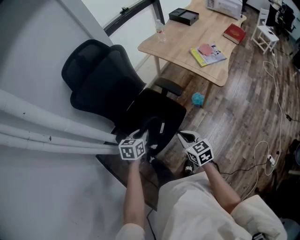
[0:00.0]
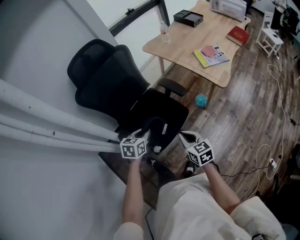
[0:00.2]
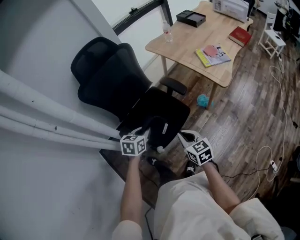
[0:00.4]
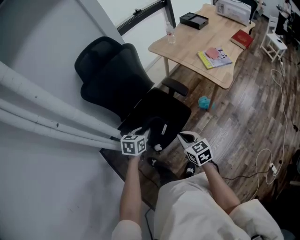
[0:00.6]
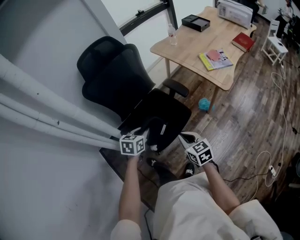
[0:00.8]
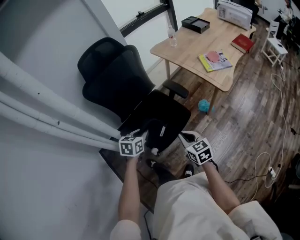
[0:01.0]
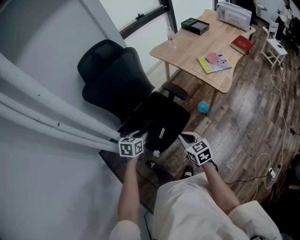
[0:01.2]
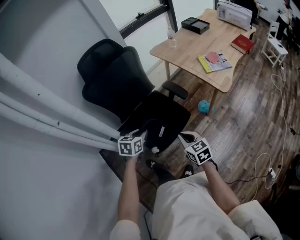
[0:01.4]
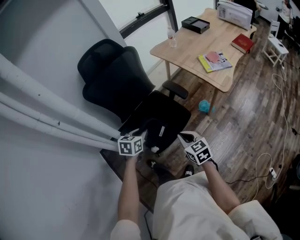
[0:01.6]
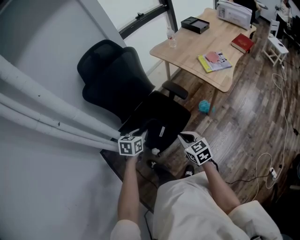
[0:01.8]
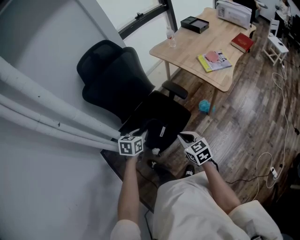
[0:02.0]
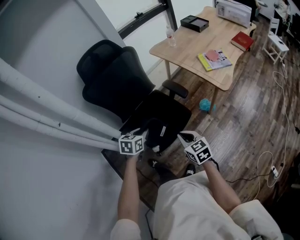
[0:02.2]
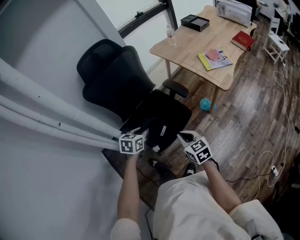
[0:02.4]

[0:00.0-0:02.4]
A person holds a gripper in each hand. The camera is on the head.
0.0 to 2.4 s: The grippers make only small movements.

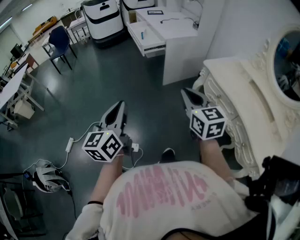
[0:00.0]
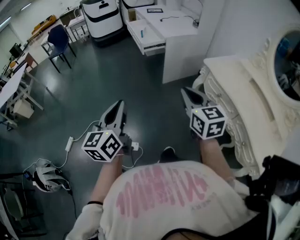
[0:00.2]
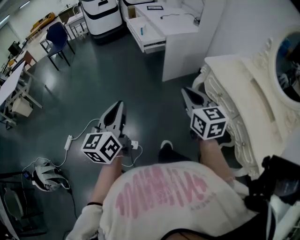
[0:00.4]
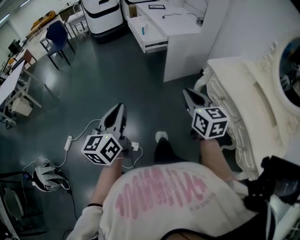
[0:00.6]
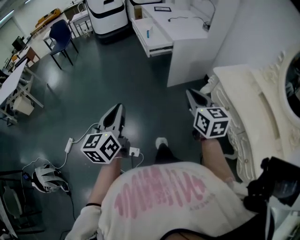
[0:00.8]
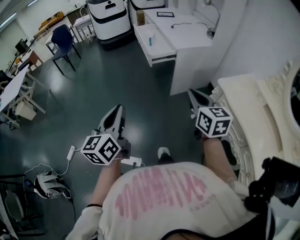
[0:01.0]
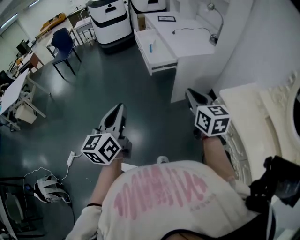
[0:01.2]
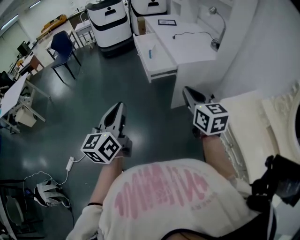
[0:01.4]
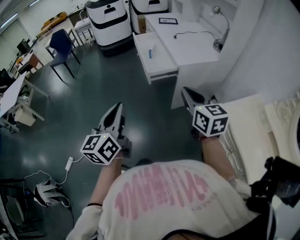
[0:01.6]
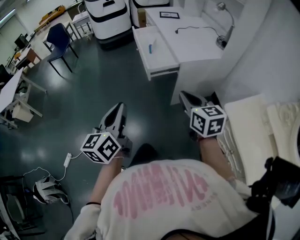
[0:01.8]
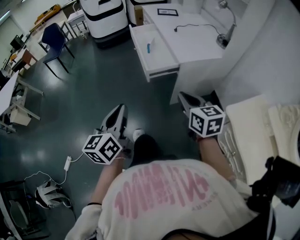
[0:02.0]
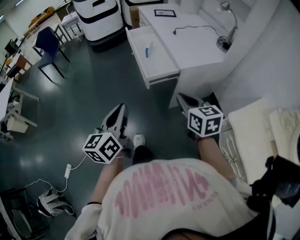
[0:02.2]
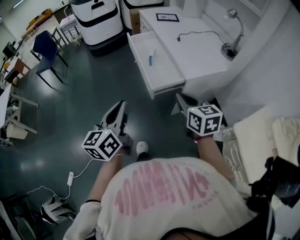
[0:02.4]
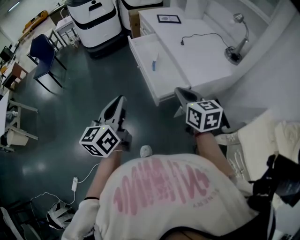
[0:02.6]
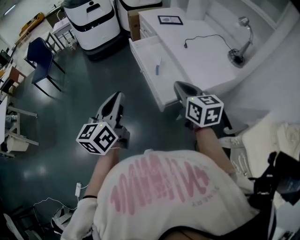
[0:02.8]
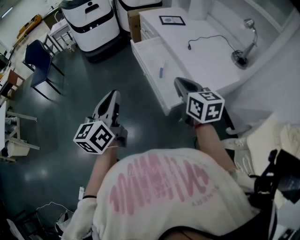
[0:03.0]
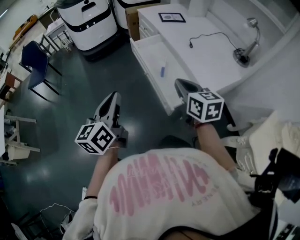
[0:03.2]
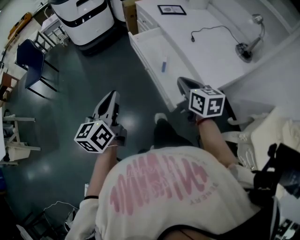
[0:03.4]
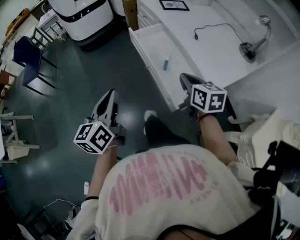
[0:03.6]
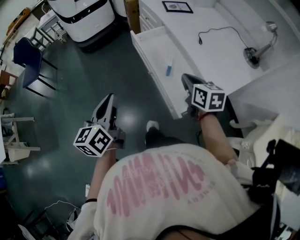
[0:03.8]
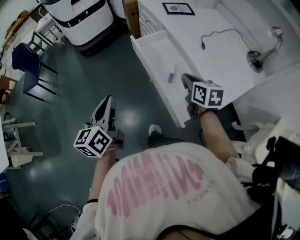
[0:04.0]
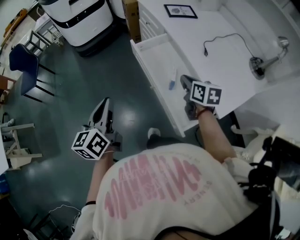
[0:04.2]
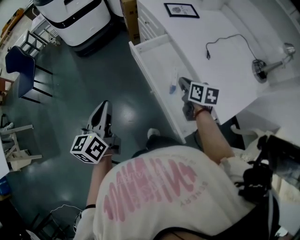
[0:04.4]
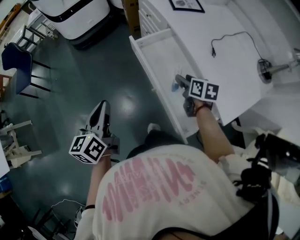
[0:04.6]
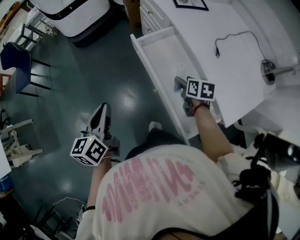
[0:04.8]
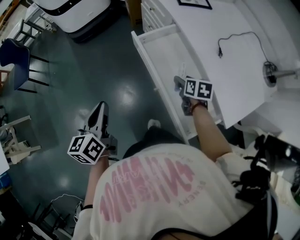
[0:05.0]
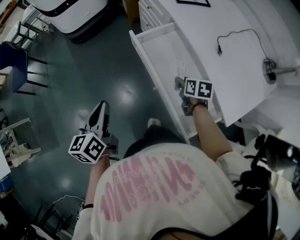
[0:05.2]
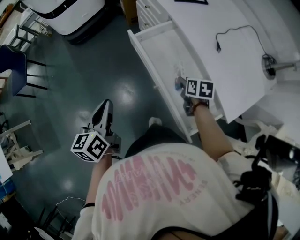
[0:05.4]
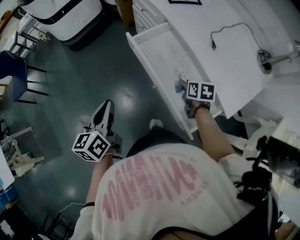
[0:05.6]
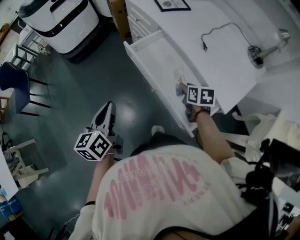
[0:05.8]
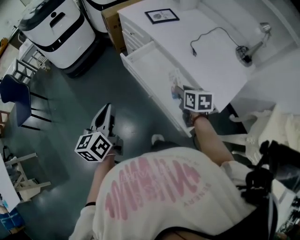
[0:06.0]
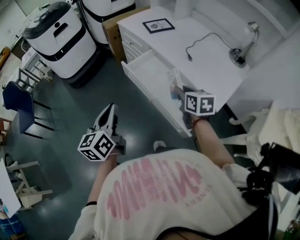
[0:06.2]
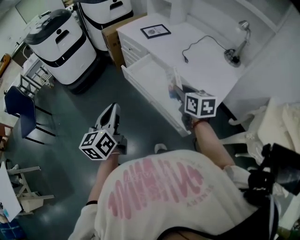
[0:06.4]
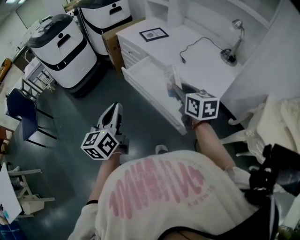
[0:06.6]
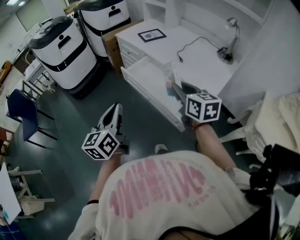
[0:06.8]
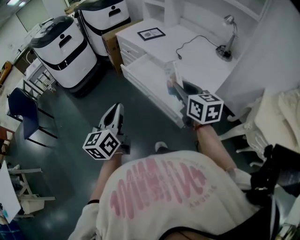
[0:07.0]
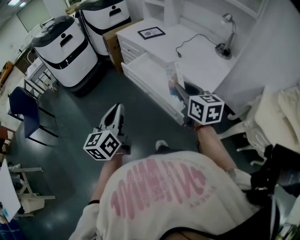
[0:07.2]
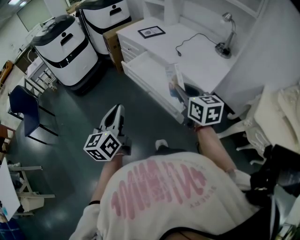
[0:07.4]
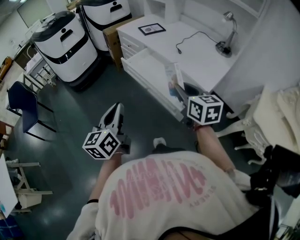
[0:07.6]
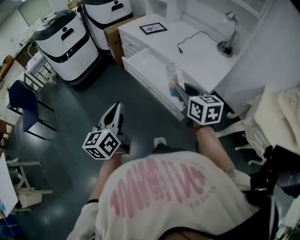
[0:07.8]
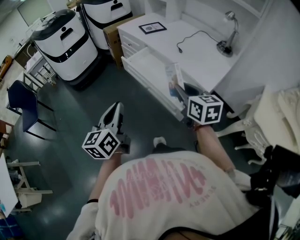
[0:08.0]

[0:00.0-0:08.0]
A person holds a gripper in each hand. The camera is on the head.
0.0 to 1.6 s: Both grippers travel together forward, roughly 35 cm.
1.6 to 3.2 s: The left gripper goes some 40 cm forward. The right gripper moves forward and to the left, about 40 cm.
3.2 to 4.8 s: Both grippers move forward and downward, some 30 cm. The right gripper turns by roughly 30 degrees, and opens.
4.8 to 6.4 s: The right gripper shifts roughly 25 cm upward and backward, rotates some 30 degrees, and closes, while the left gripper moves upward, roughly 10 cm, and swivels roughly 20 degrees.
6.4 to 8.0 s: The two grippers go roughly 10 cm backward.

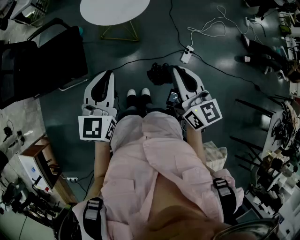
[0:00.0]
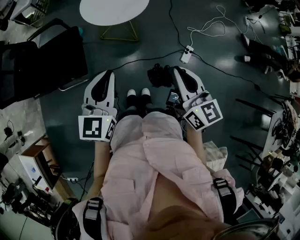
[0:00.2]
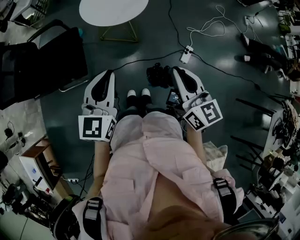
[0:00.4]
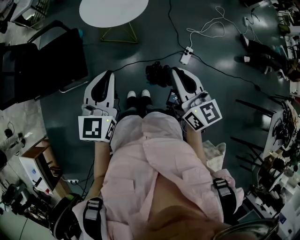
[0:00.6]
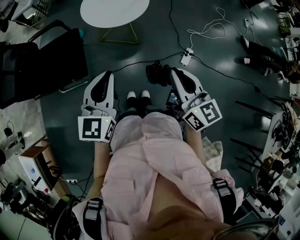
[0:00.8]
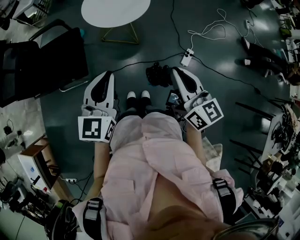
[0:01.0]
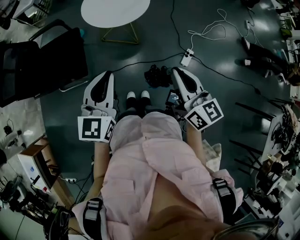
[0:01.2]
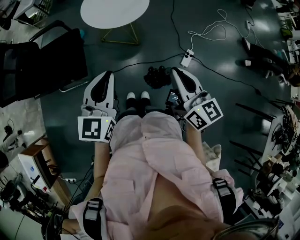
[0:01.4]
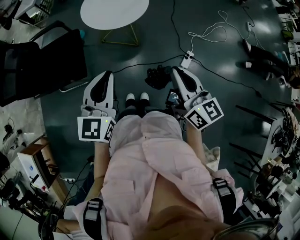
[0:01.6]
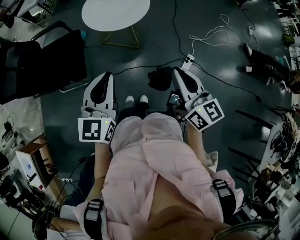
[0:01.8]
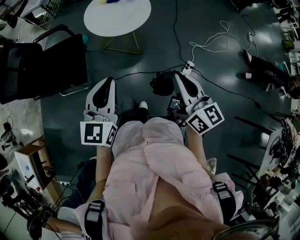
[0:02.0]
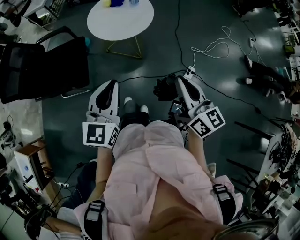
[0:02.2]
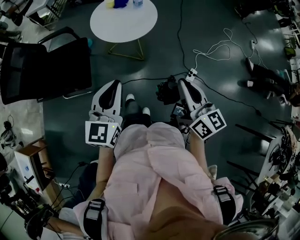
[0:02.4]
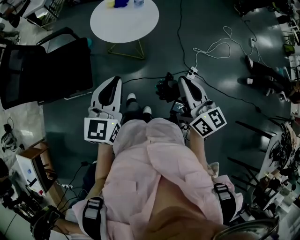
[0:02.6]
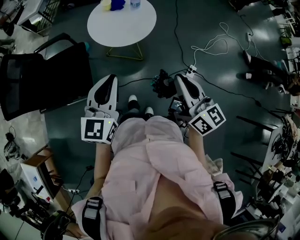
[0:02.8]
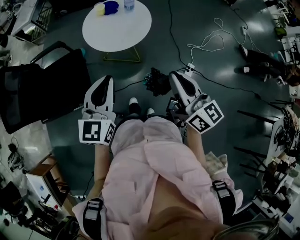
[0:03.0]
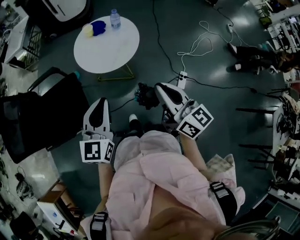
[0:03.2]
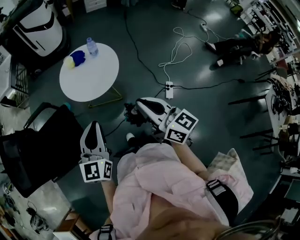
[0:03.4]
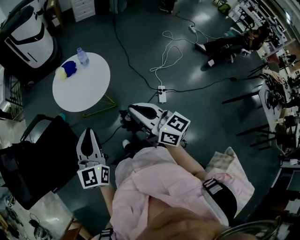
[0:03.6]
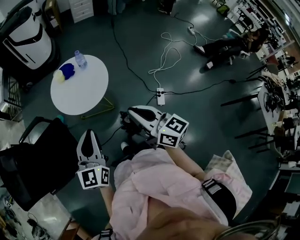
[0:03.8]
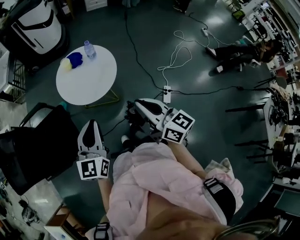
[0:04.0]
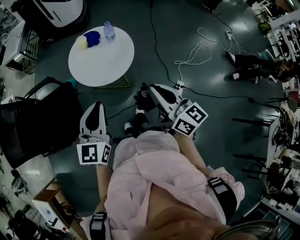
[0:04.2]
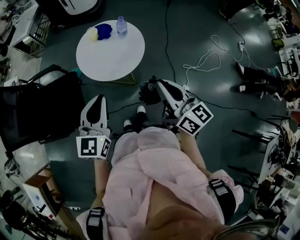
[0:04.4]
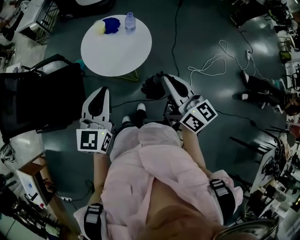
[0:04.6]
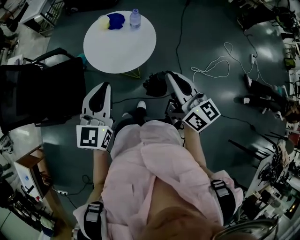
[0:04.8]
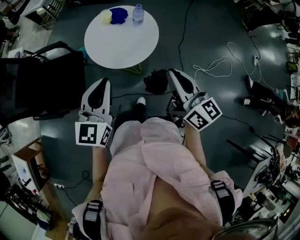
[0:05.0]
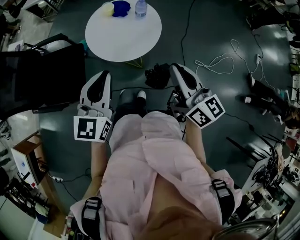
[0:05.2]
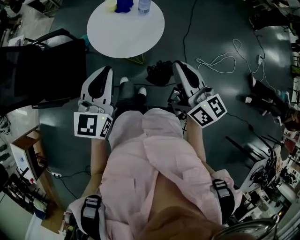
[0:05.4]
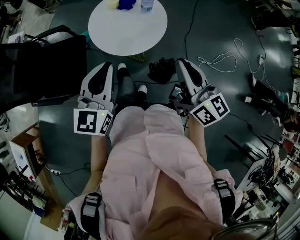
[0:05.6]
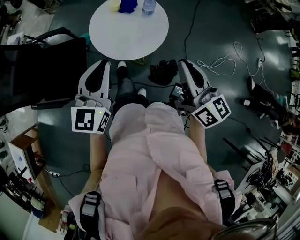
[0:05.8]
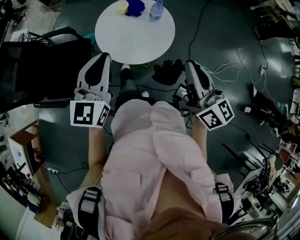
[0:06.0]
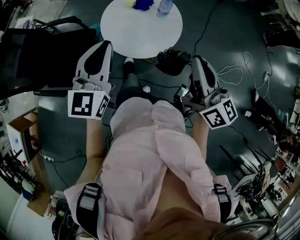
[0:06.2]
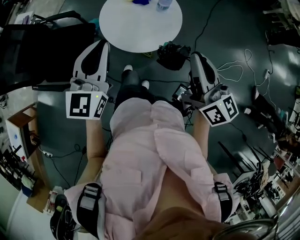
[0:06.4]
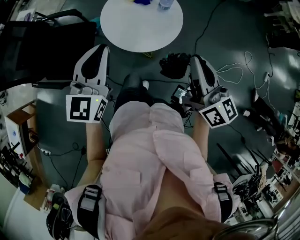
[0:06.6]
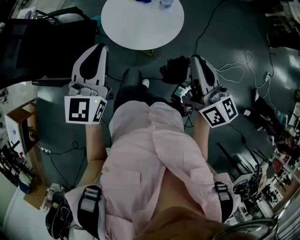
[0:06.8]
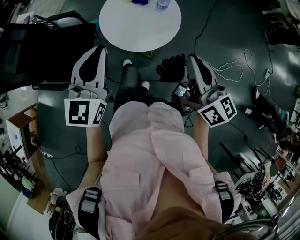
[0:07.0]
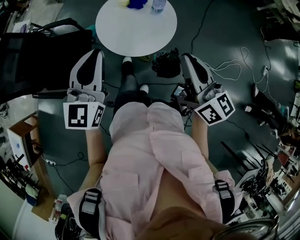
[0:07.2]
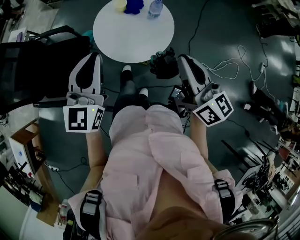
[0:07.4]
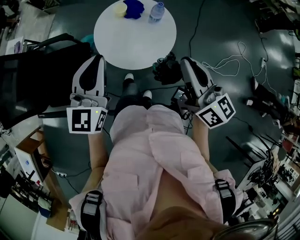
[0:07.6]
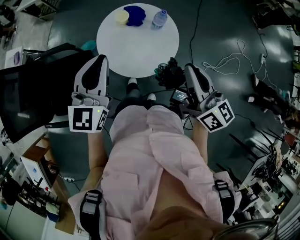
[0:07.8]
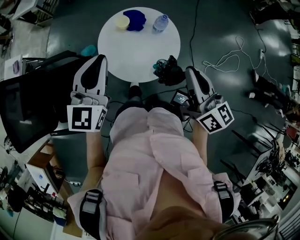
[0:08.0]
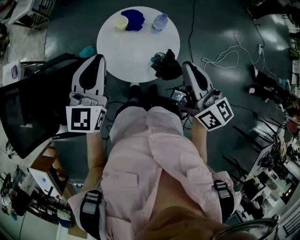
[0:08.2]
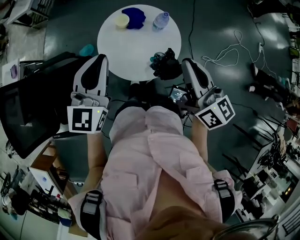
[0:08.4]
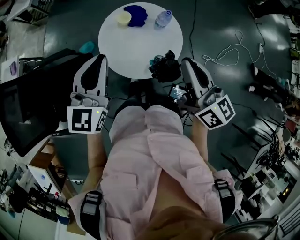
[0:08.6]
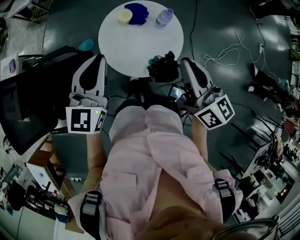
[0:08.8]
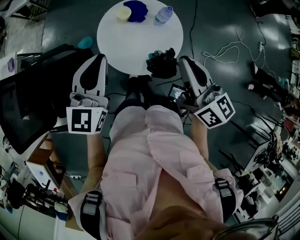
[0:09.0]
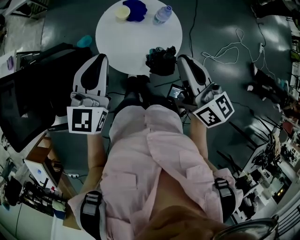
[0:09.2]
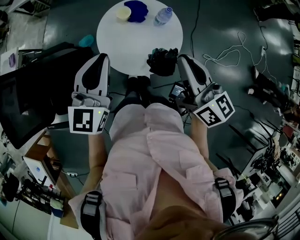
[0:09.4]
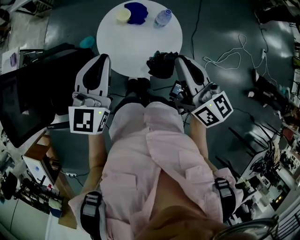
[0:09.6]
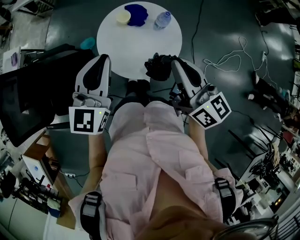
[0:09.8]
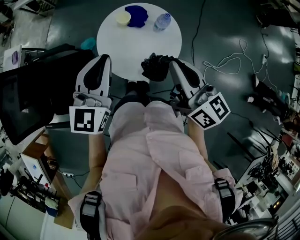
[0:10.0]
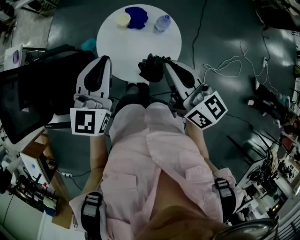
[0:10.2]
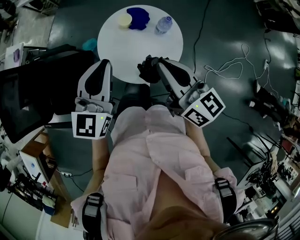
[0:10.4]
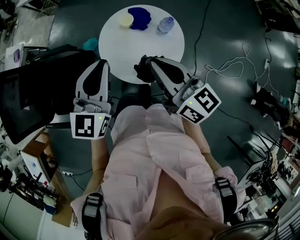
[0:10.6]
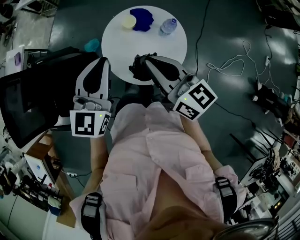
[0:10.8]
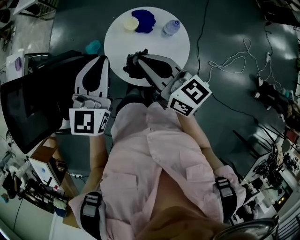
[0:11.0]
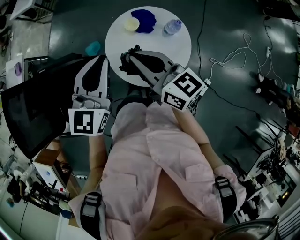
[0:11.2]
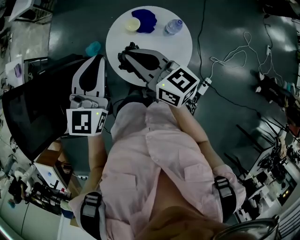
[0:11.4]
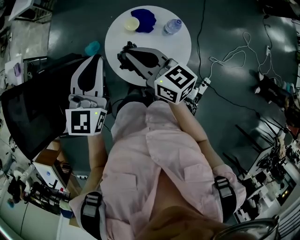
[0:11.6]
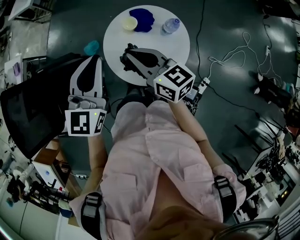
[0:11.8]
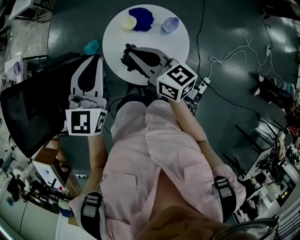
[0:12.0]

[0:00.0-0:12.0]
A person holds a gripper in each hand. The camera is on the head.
0.0 to 1.6 s: The grippers stay close to where they were, moving slightly.
1.6 to 3.0 s: Both grippers travel together forward and to the left, about 10 cm.
3.0 to 4.4 s: The two grippers go some 10 cm forward.
4.4 to 6.0 s: Both grippers travel together forward, approximately 10 cm.
6.0 to 7.6 s: Both grippers travel together forward, about 5 cm.
7.6 to 9.0 s: The left gripper shifts approximately 10 cm forward, while the right gripper is displaced to the left and forward by about 10 cm.
9.0 to 10.4 s: The grippers stay close to where they were, moving slightly.
10.4 to 12.0 s: The right gripper is displaced to the left, forward and downward by about 15 cm; the left gripper travels forward by approximately 10 cm.

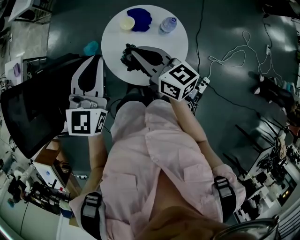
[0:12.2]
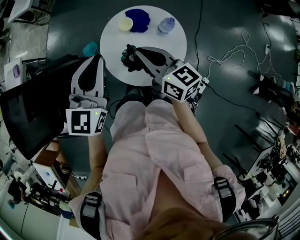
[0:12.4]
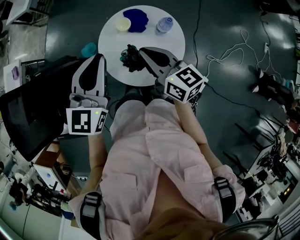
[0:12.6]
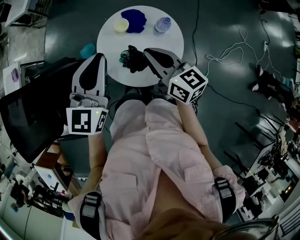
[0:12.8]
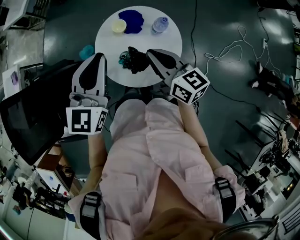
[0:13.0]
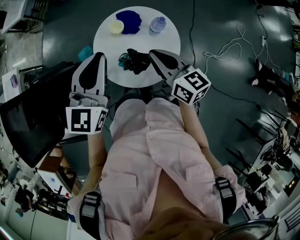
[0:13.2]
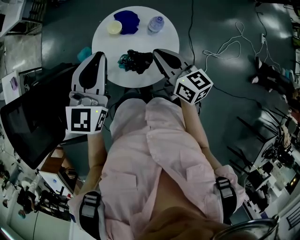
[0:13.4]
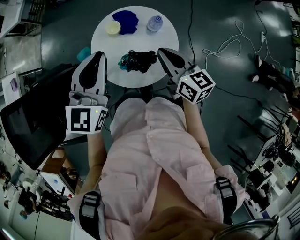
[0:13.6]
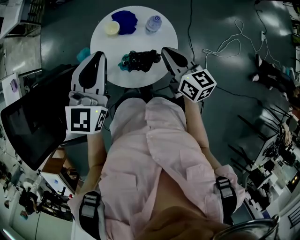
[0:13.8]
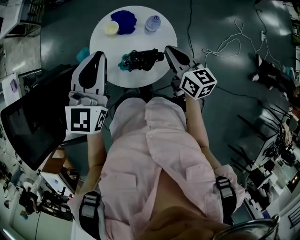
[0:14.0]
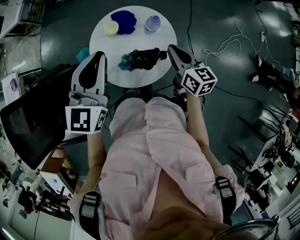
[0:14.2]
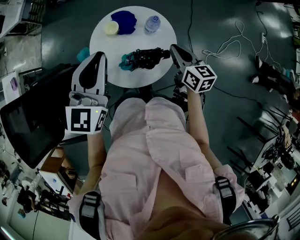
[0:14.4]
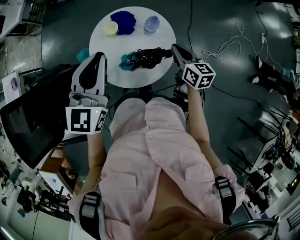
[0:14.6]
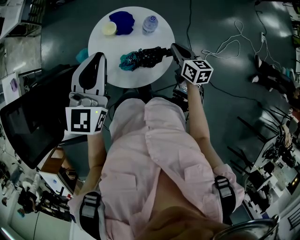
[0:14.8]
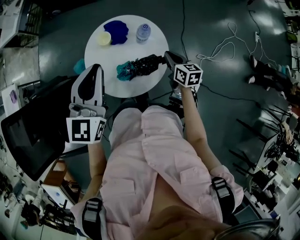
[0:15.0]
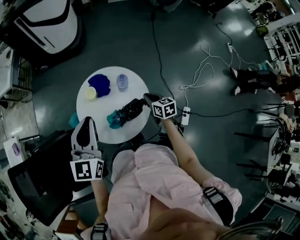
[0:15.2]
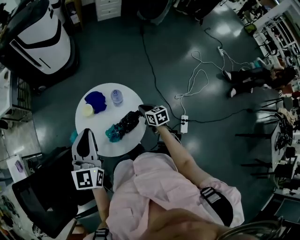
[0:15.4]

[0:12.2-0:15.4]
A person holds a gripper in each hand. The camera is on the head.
12.2 to 13.8 s: The left gripper shifts about 5 cm to the right. The right gripper is displaced to the right by some 15 cm, and swivels about 20 degrees.
13.8 to 15.4 s: The right gripper travels downward and to the right by some 20 cm, and rotates roughly 20 degrees.
